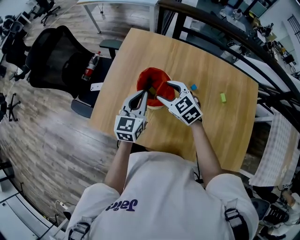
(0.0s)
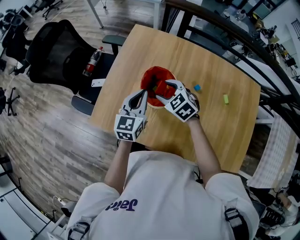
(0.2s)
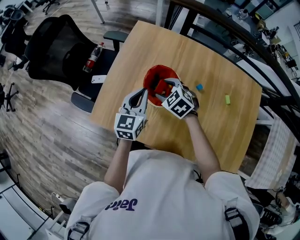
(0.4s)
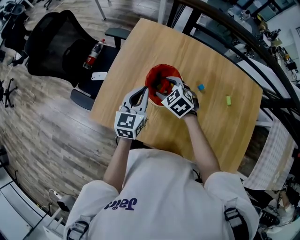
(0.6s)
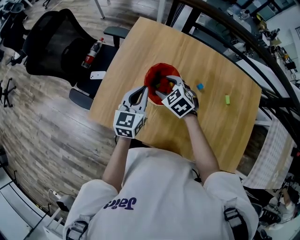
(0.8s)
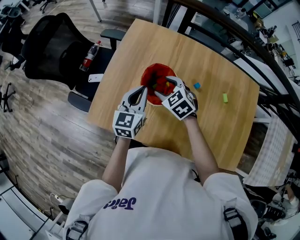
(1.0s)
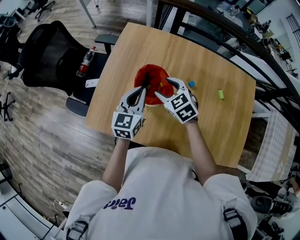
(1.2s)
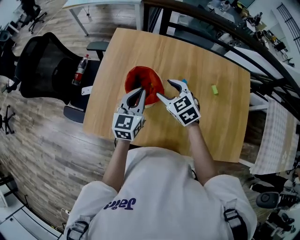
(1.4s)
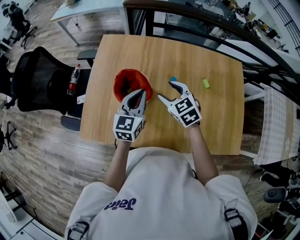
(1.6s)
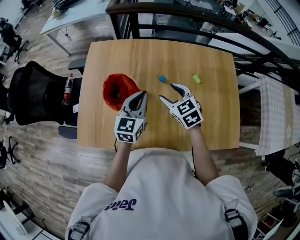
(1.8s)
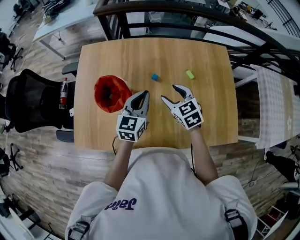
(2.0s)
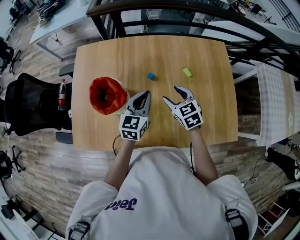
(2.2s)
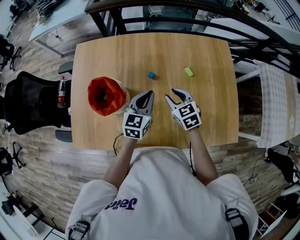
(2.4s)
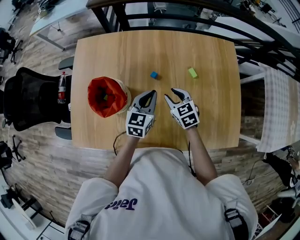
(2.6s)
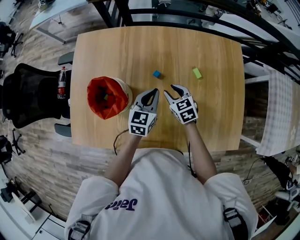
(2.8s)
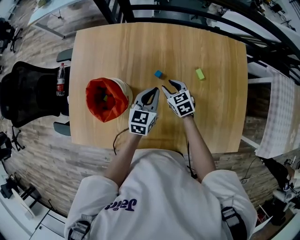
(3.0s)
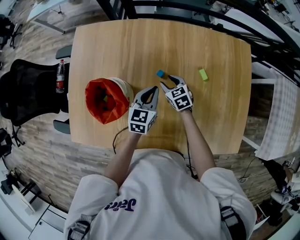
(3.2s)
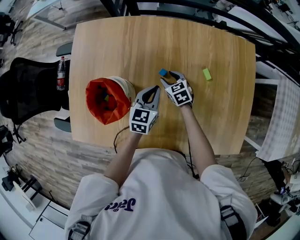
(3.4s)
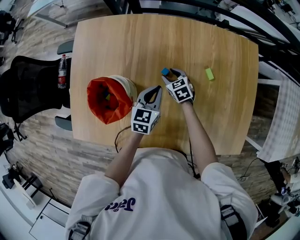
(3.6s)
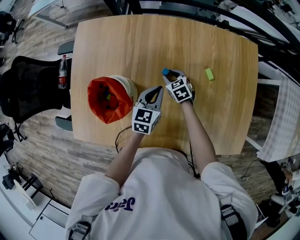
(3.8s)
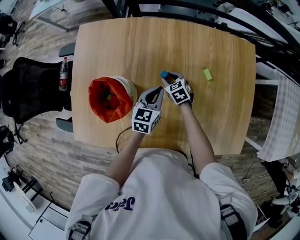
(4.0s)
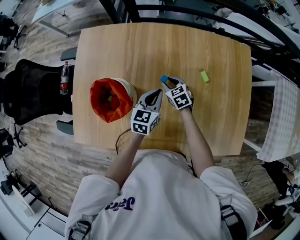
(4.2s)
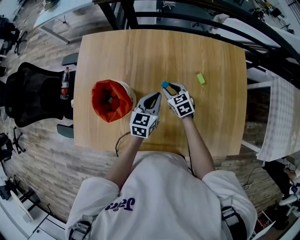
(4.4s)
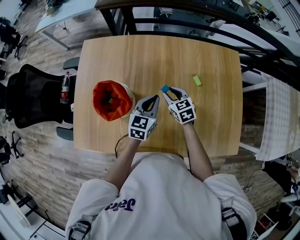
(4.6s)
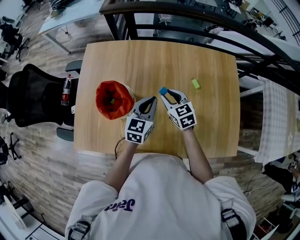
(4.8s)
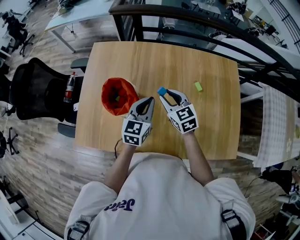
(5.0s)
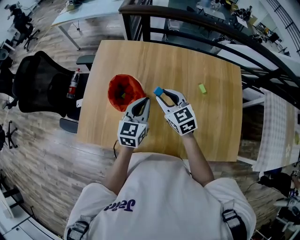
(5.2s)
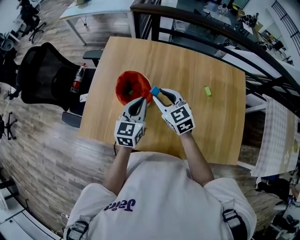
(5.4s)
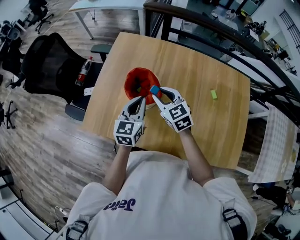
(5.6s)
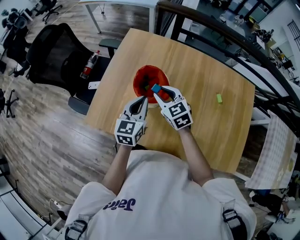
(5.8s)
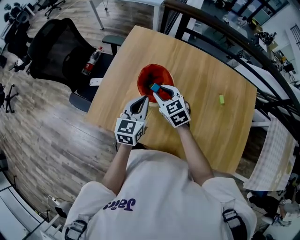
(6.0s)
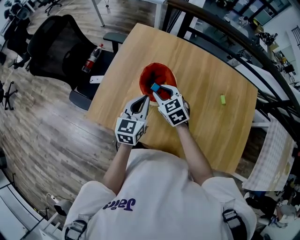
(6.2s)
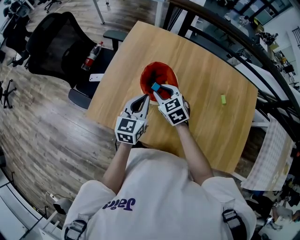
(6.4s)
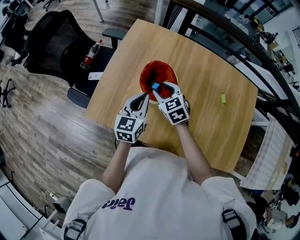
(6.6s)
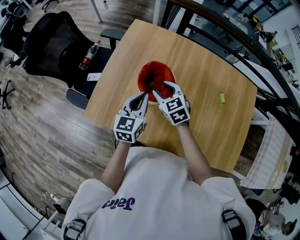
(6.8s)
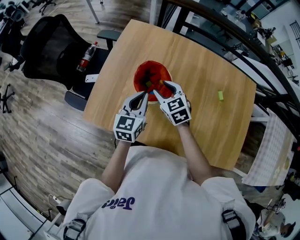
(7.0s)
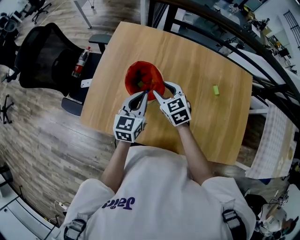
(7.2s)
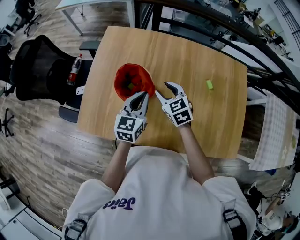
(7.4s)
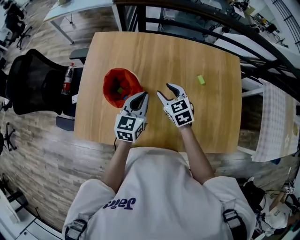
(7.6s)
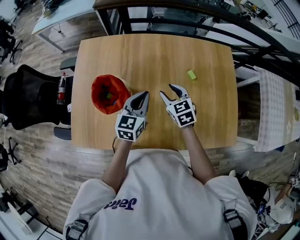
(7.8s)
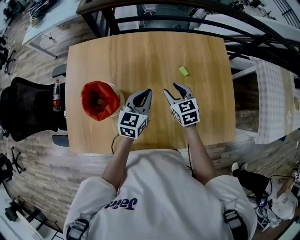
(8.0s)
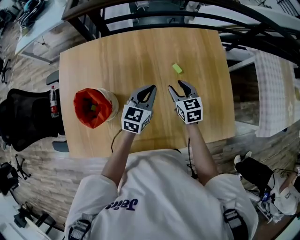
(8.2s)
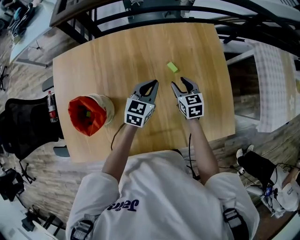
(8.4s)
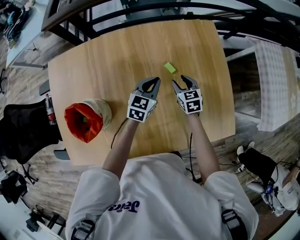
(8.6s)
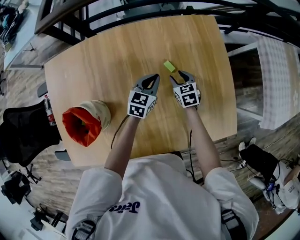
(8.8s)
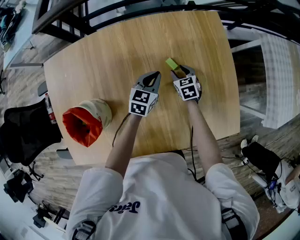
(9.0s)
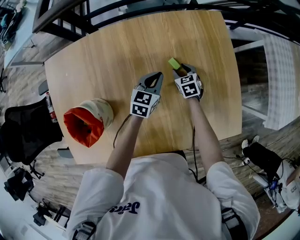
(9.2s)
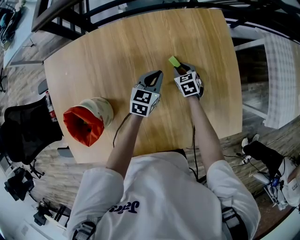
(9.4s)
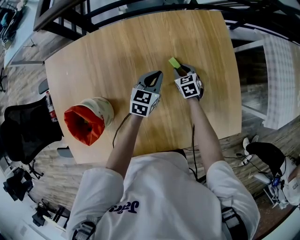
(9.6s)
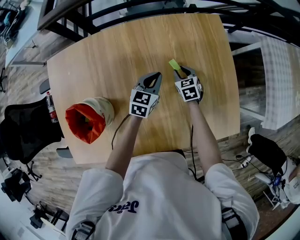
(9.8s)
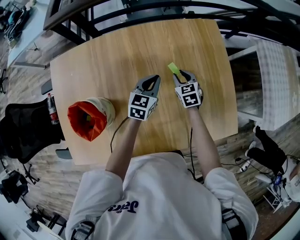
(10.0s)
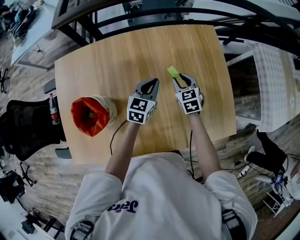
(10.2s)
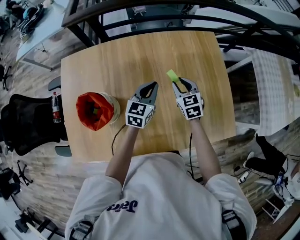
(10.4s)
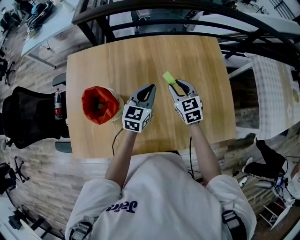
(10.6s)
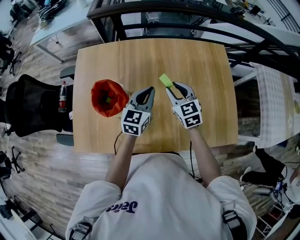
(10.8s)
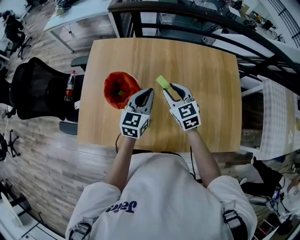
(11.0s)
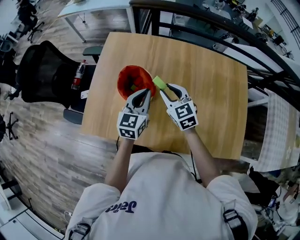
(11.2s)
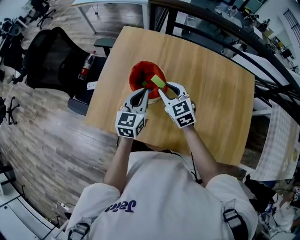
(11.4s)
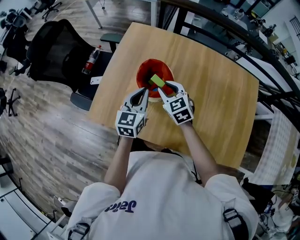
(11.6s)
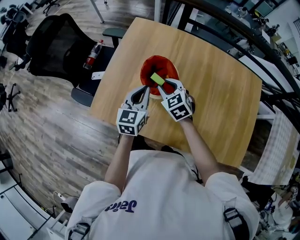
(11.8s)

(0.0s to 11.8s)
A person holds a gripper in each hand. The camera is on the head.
1.4s - 3.0s: The two grippers go about 25 cm to the right and downward. The right gripper swivels some 20 degrees, and closes.
3.0s - 4.4s: The right gripper goes downward and returns, about 5 cm each way.
4.4s - 6.0s: The left gripper heads to the left, covering about 25 cm, and turns by some 20 degrees. Meanwhile the right gripper moves to the left and upward, about 30 cm, and rotates roughly 30 degrees.
6.0s - 7.4s: The two grippers go some 10 cm to the right.
7.4s - 8.8s: The left gripper changes place by roughly 40 cm, and changes its angle by some 30 degrees; the right gripper moves roughly 40 cm, and swivels roughly 40 degrees.
8.8s - 10.4s: The grippers both shift upward and backward by about 15 cm.
10.4s - 11.8s: Both grippers are carried roughly 40 cm. The left gripper turns by about 40 degrees, while the right gripper turns by some 40 degrees.

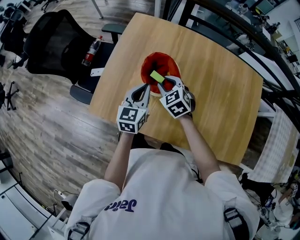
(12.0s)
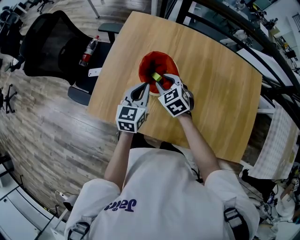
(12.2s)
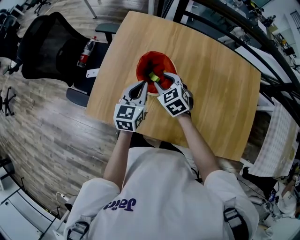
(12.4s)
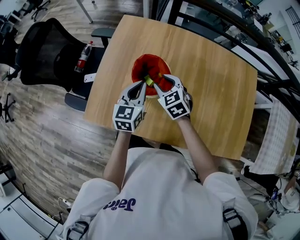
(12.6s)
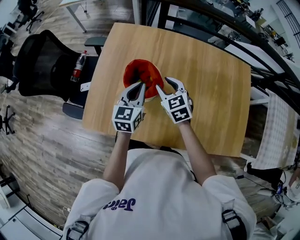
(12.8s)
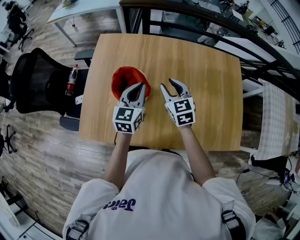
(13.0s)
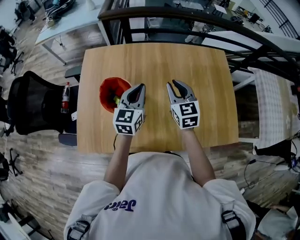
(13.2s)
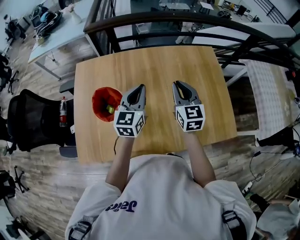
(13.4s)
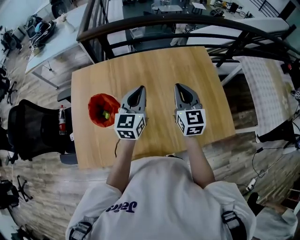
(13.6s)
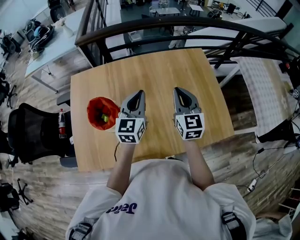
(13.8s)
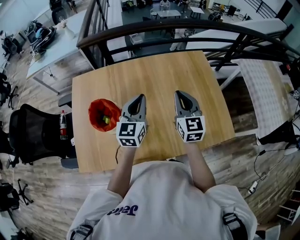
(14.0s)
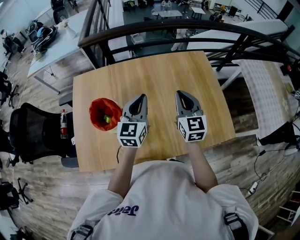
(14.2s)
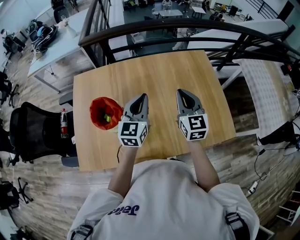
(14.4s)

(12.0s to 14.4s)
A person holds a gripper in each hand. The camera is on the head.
12.0s - 13.2s: Both grippers move to the right and upward, about 25 cm. The right gripper changes its angle by approximately 50 degrees. The left gripper changes its angle by some 20 degrees.
13.2s - 14.4s: The grippers both shift to the right and upward by approximately 15 cm.

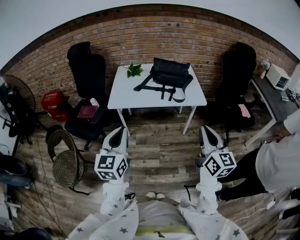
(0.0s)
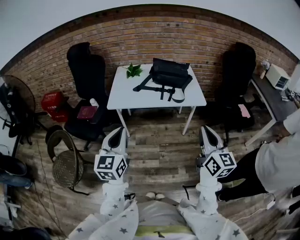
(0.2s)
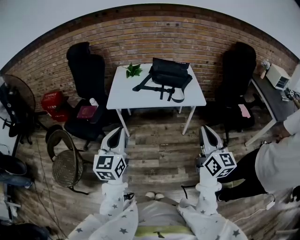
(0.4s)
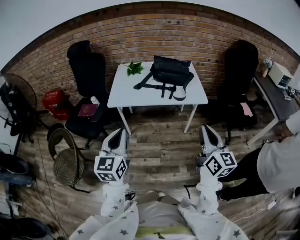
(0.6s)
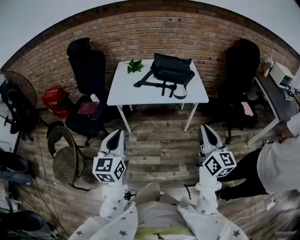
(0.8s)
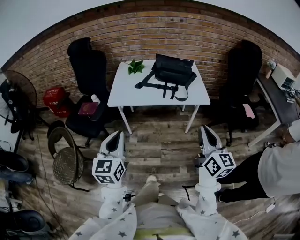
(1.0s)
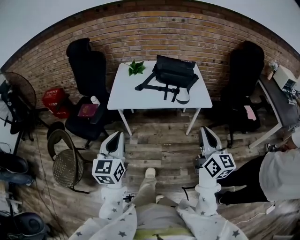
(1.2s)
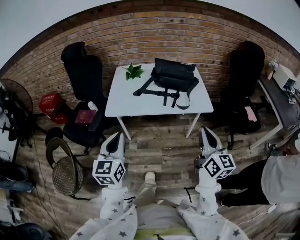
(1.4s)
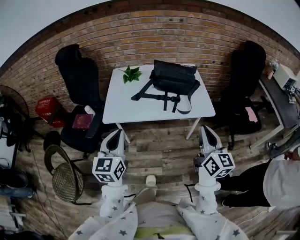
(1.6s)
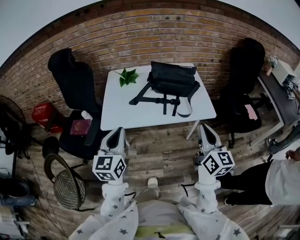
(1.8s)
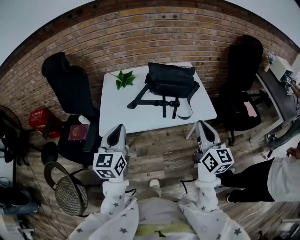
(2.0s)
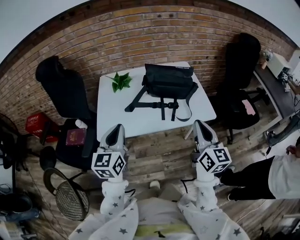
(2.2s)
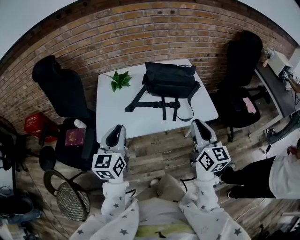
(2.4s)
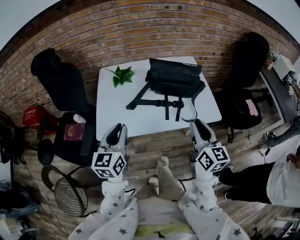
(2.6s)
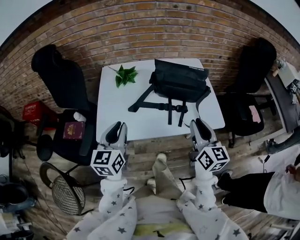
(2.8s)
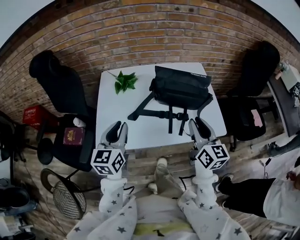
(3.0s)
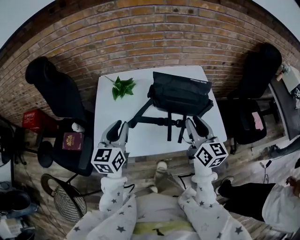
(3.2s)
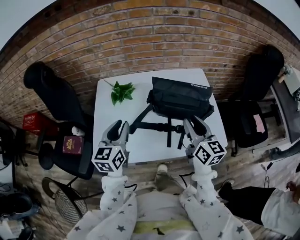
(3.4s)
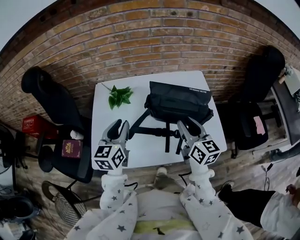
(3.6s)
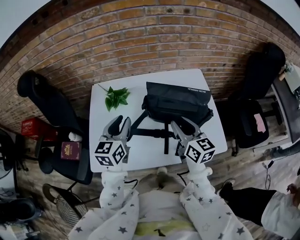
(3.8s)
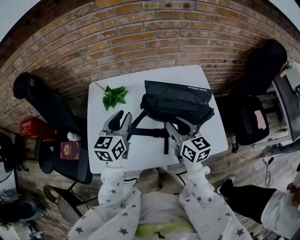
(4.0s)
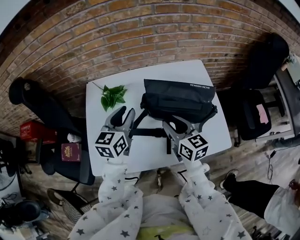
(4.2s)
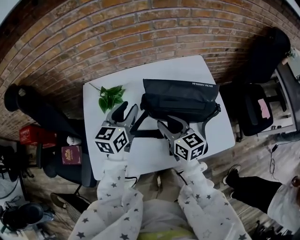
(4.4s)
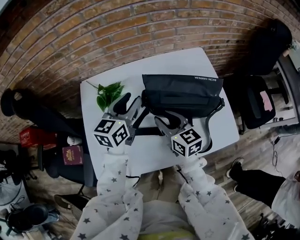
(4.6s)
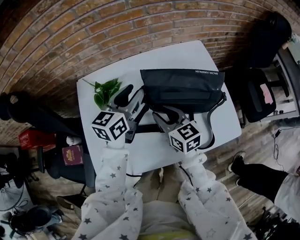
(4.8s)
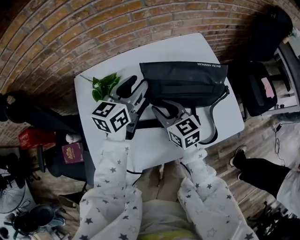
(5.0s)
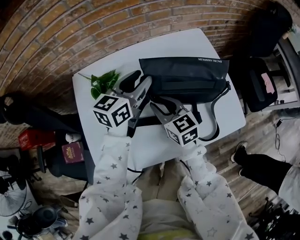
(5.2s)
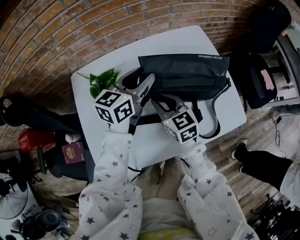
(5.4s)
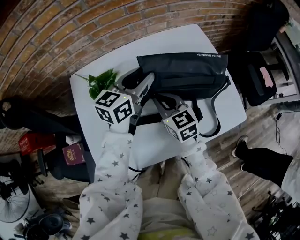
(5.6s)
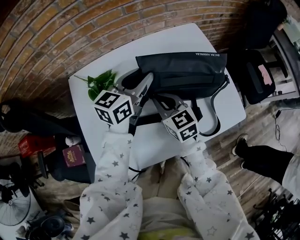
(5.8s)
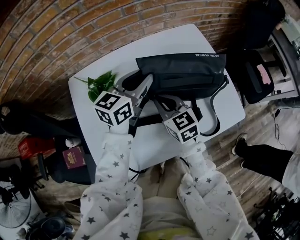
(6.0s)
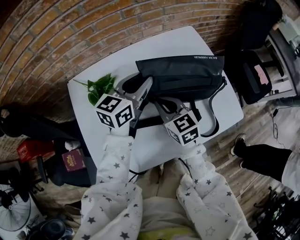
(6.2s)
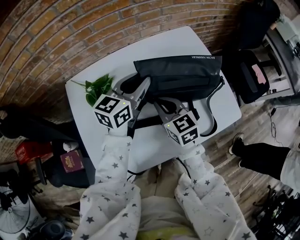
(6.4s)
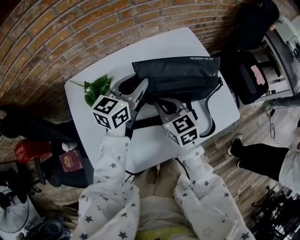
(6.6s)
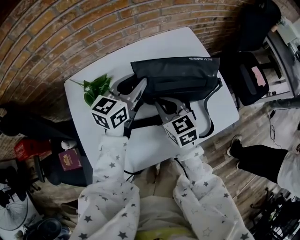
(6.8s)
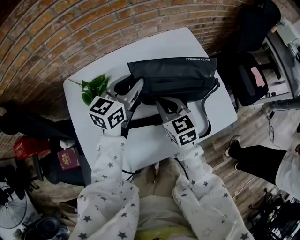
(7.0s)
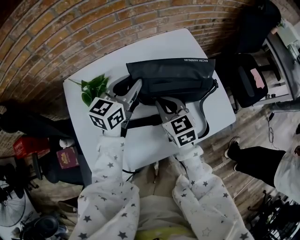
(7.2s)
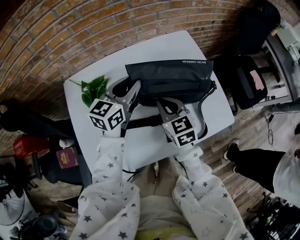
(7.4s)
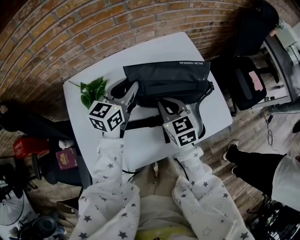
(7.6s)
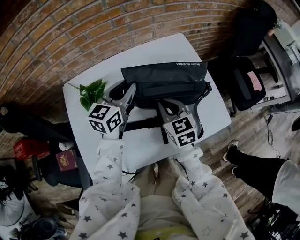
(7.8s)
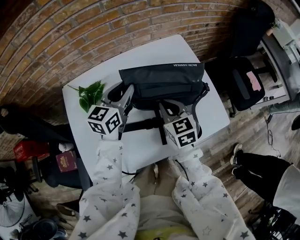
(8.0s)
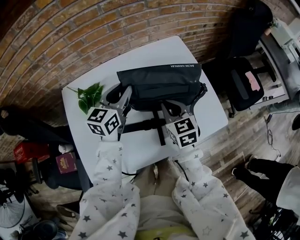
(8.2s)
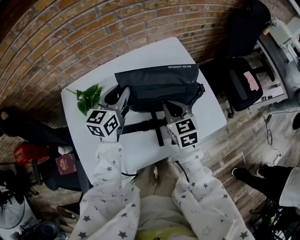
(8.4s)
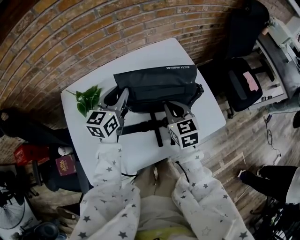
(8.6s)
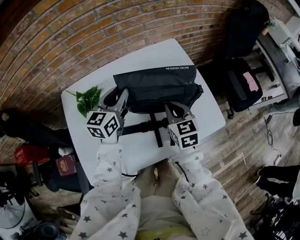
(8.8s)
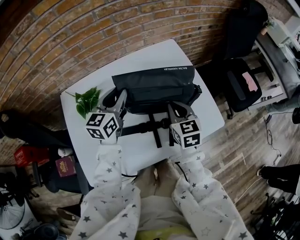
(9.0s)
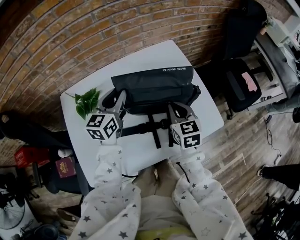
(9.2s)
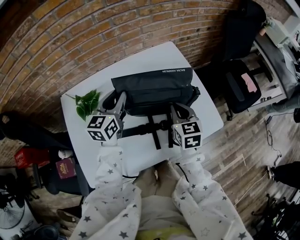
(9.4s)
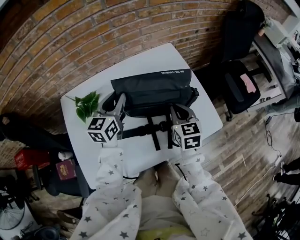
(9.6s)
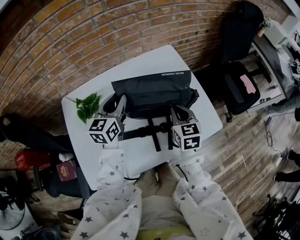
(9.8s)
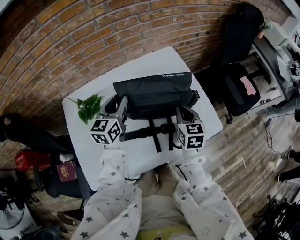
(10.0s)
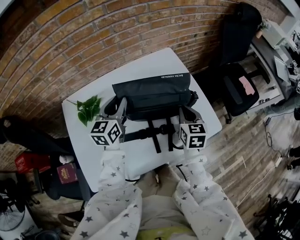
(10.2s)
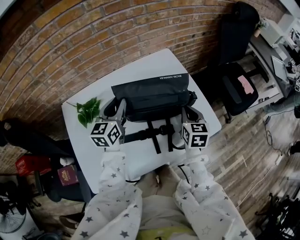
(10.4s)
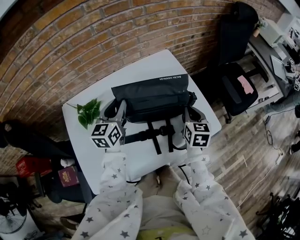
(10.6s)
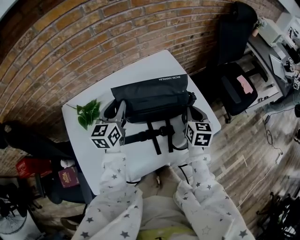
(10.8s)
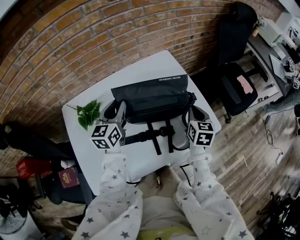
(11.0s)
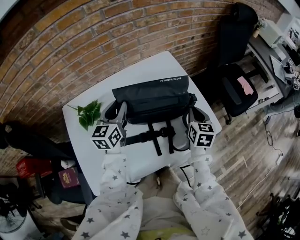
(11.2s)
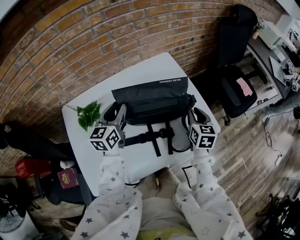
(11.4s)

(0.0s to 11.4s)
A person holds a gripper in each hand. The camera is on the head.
0.0s - 1.4s: Both grippers travel together forward, approximately 10 cm.
1.4s - 2.8s: The two grippers go approximately 25 cm forward.
2.8s - 4.2s: The right gripper heads forward and downward, covering approximately 25 cm; the left gripper heads forward, covering some 25 cm.
4.2s - 5.6s: The right gripper moves downward and to the left, about 10 cm, and closes its fingers. The left gripper goes approximately 10 cm forward and to the right, and rotates roughly 30 degrees.
5.6s - 7.2s: The right gripper changes place by roughly 5 cm.
7.2s - 8.6s: The right gripper shifts some 10 cm to the right.
8.6s - 10.0s: The right gripper is displaced to the right by roughly 5 cm.
10.0s - 11.4s: The right gripper shifts about 10 cm to the right.
